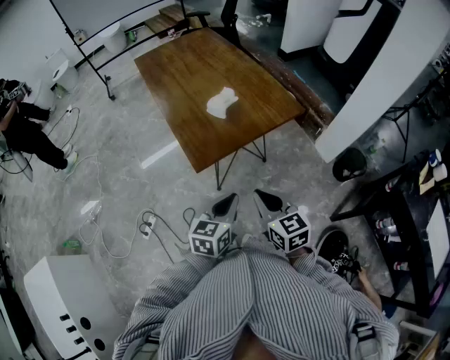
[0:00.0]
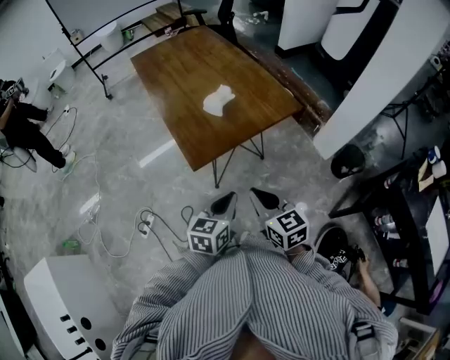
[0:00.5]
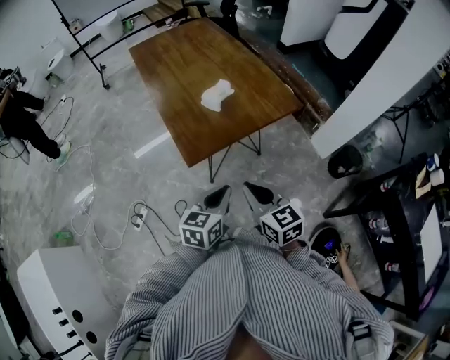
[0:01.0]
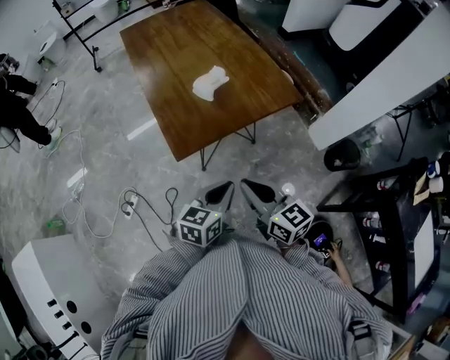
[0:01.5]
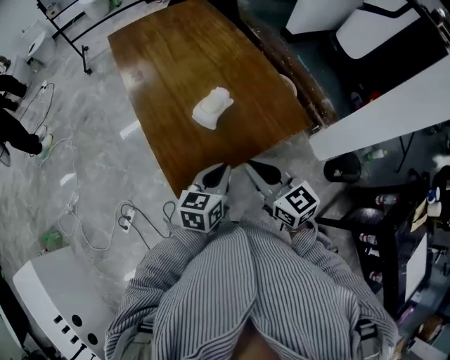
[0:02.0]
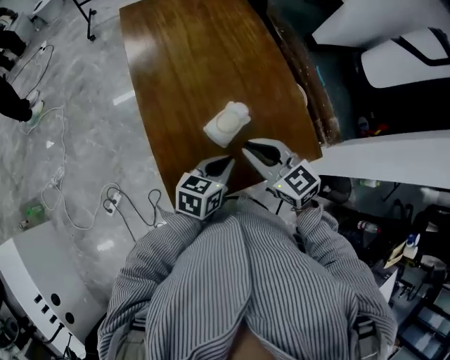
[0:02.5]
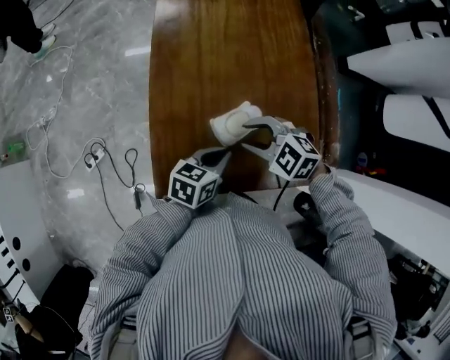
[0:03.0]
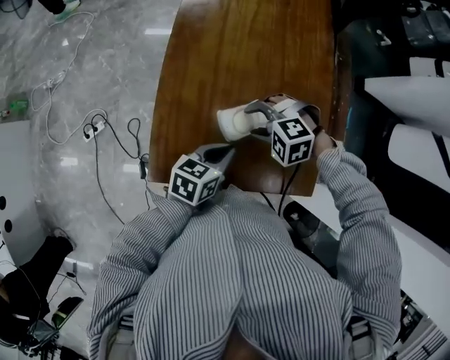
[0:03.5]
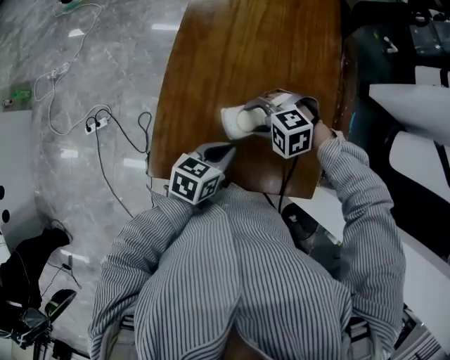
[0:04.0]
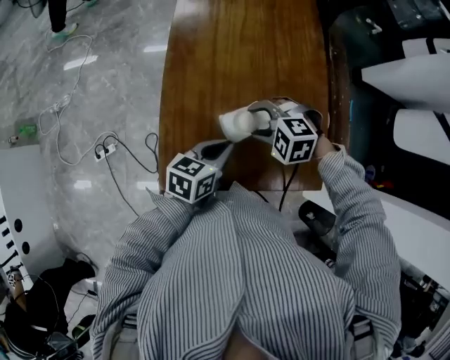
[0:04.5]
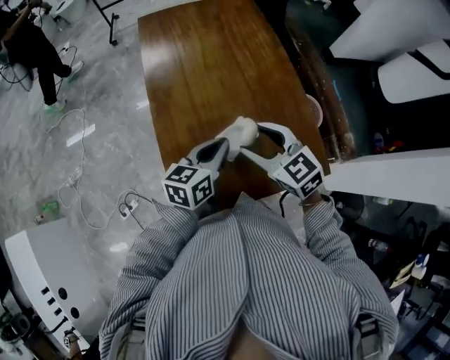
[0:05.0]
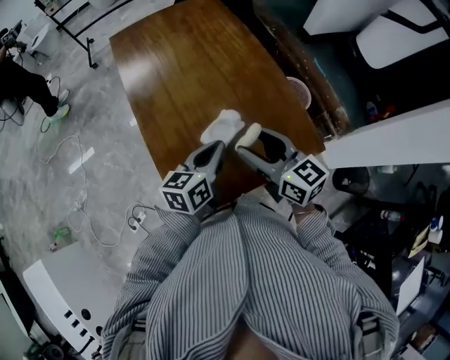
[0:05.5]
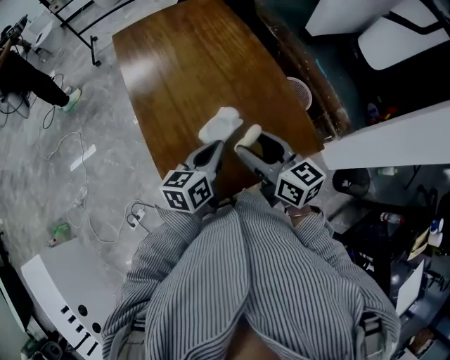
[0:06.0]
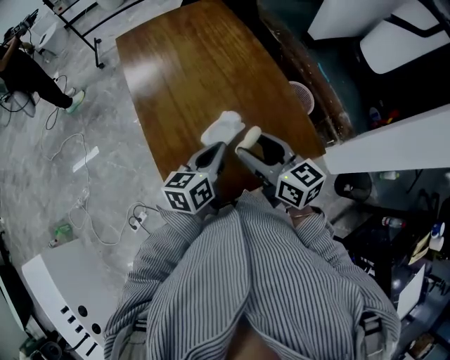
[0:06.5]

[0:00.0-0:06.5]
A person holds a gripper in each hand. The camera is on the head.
0:00.0 to 0:02.0: The two grippers go about 25 cm forward.
0:02.0 to 0:04.5: The right gripper changes place by about 25 cm, angles its fingers downward, by roughly 50 degrees, and opens. Meanwhile the left gripper ends up some 15 cm from where it was, and rotates roughly 20 degrees.
0:04.5 to 0:06.5: The left gripper heads upward, covering approximately 10 cm. The right gripper travels upward by roughly 15 cm, and tilts its fingers some 60 degrees upward.

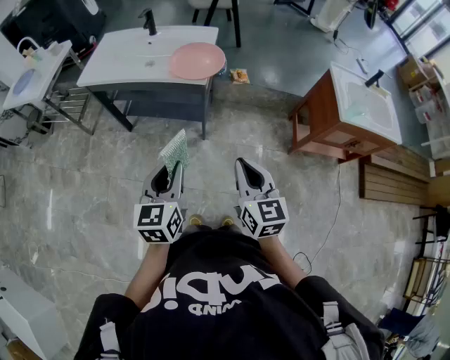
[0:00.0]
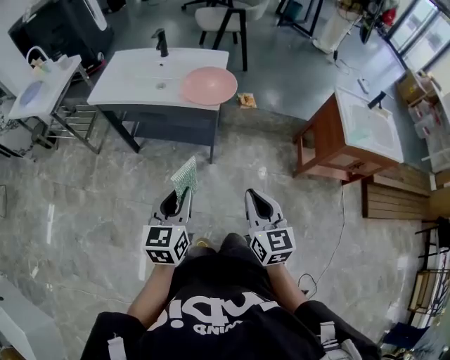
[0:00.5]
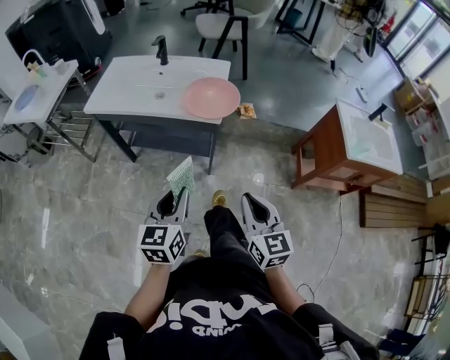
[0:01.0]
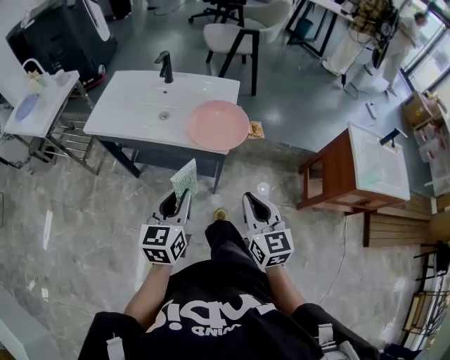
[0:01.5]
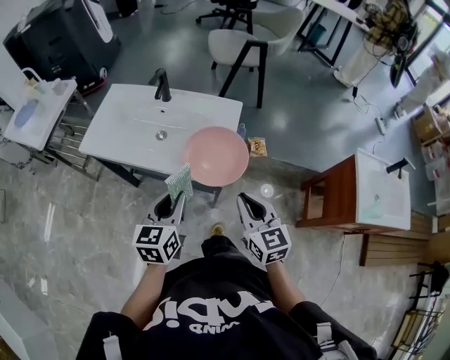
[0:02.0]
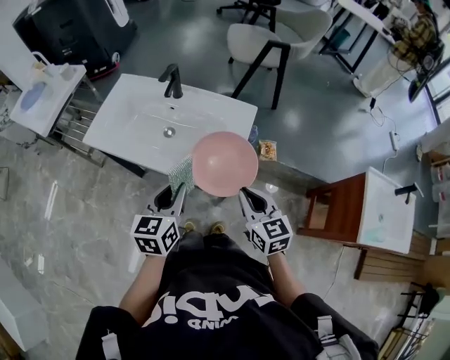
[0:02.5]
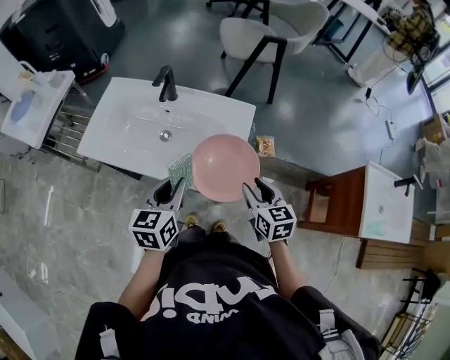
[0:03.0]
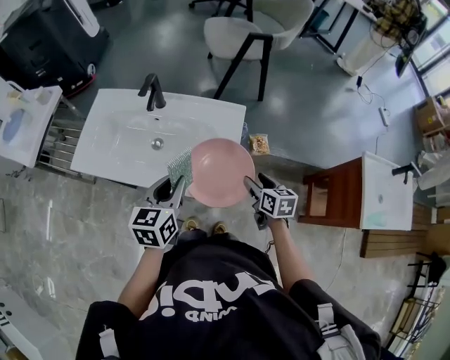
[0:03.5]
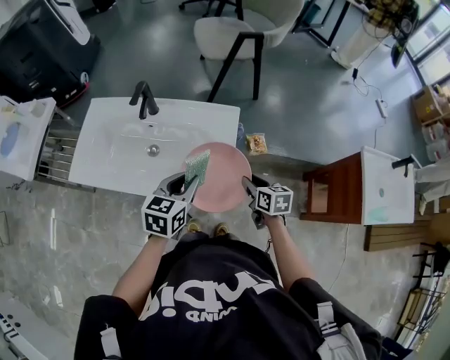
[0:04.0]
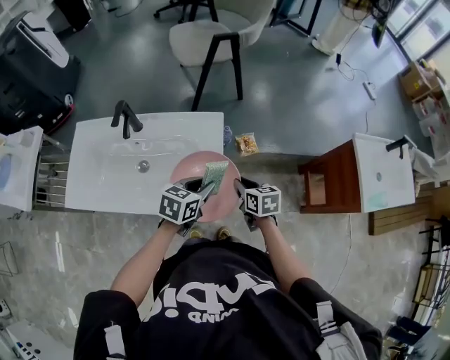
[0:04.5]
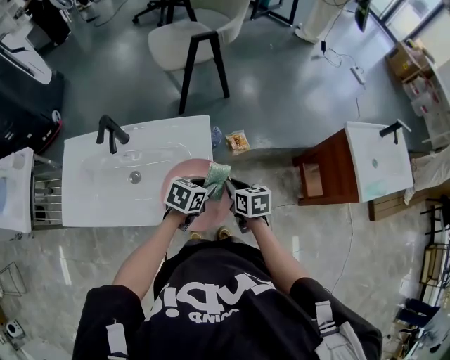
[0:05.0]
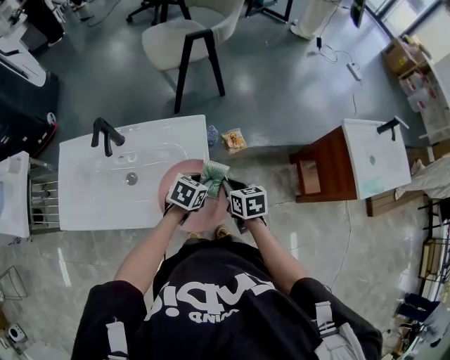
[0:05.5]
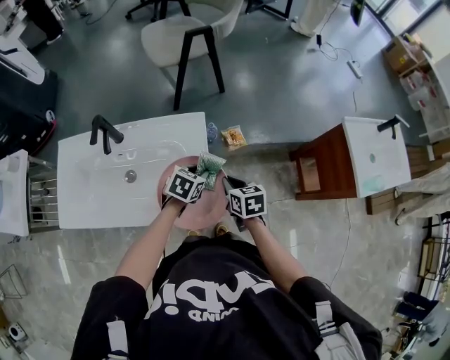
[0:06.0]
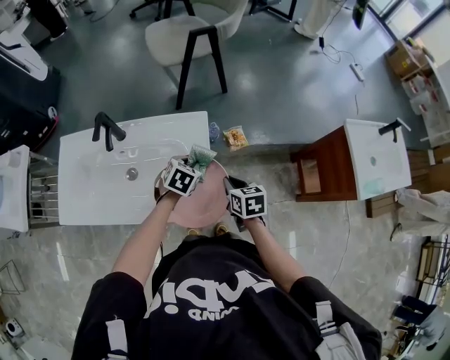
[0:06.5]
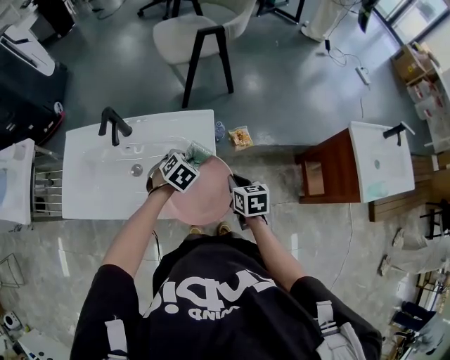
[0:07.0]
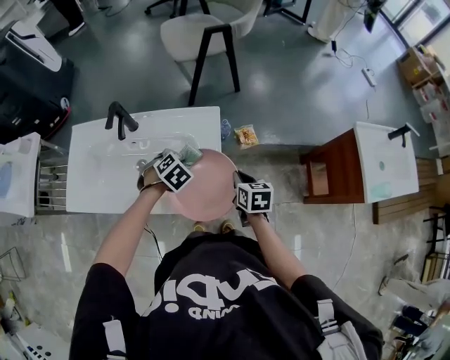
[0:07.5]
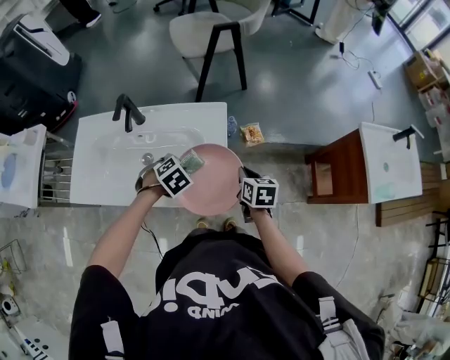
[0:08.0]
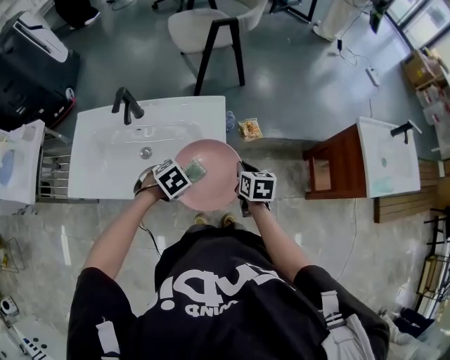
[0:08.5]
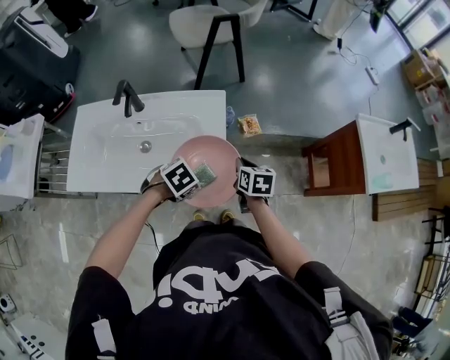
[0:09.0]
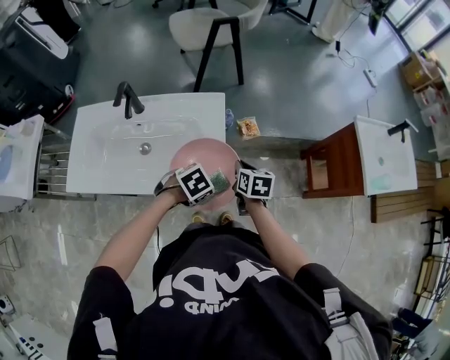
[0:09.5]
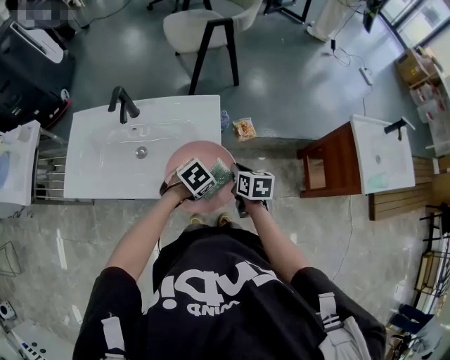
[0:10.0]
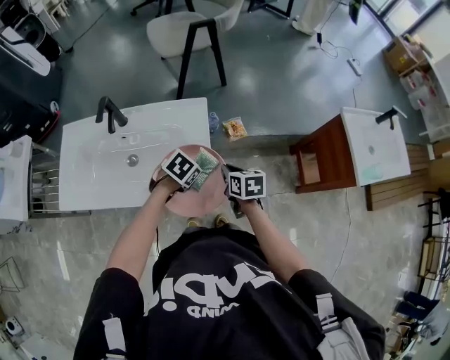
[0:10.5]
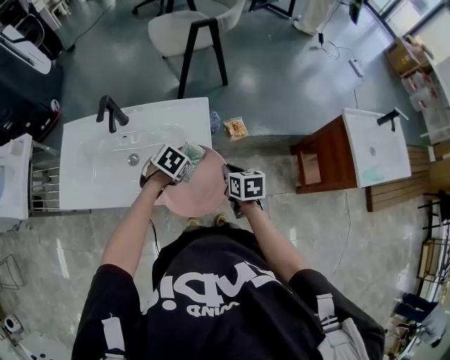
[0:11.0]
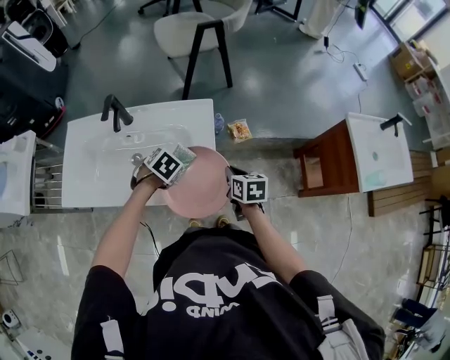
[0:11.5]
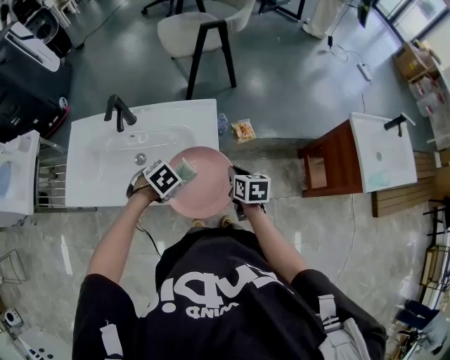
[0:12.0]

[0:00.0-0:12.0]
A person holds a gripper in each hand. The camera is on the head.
0:00.0 to 0:02.0: Both grippers move forward, about 30 cm.
0:02.0 to 0:04.0: The left gripper shifts roughly 15 cm forward, and rotates approximately 20 degrees; the right gripper shifts approximately 25 cm forward and downward, turns by roughly 40 degrees, and opens up.
0:04.0 to 0:06.0: The right gripper closes up; the left gripper heads downward, forward and to the right, covering approximately 20 cm, and changes its angle by some 30 degrees.
0:06.0 to 0:08.0: The left gripper travels to the left by some 15 cm, and rotates some 30 degrees.
0:08.0 to 0:10.0: The left gripper ends up some 15 cm from where it was, and turns by some 20 degrees.
0:10.0 to 0:12.0: The left gripper moves approximately 10 cm.

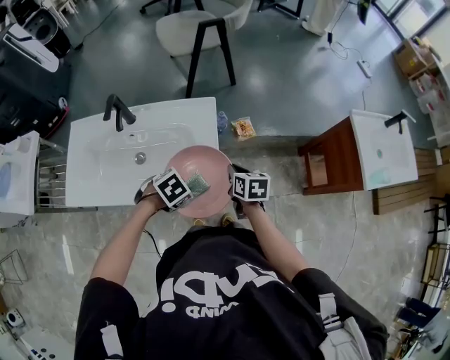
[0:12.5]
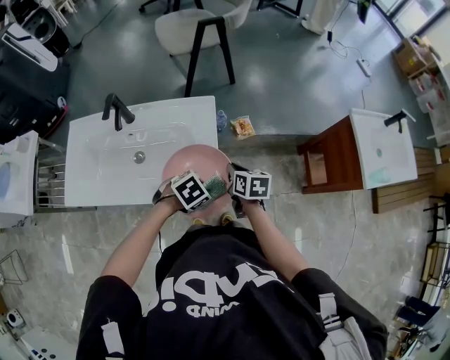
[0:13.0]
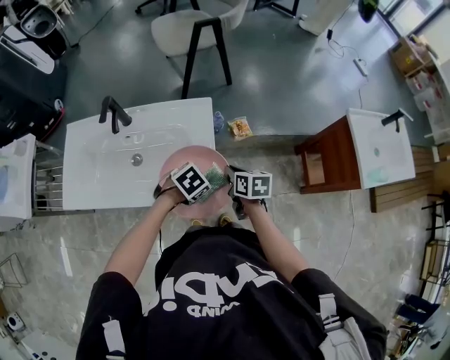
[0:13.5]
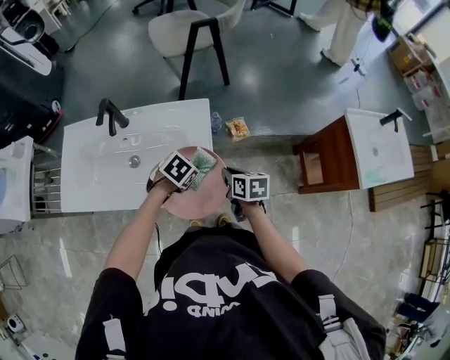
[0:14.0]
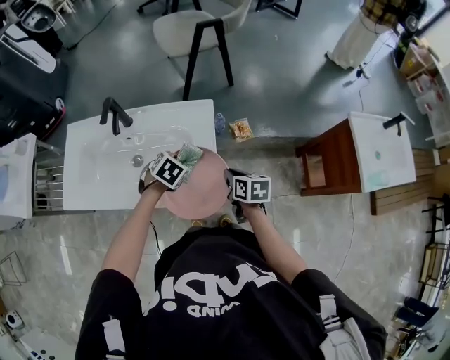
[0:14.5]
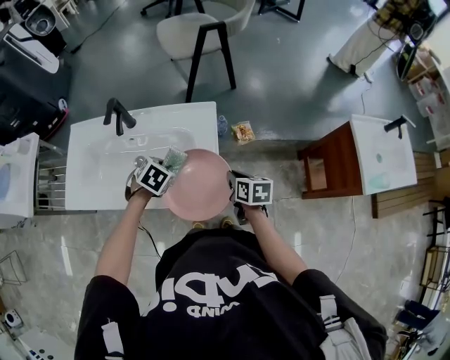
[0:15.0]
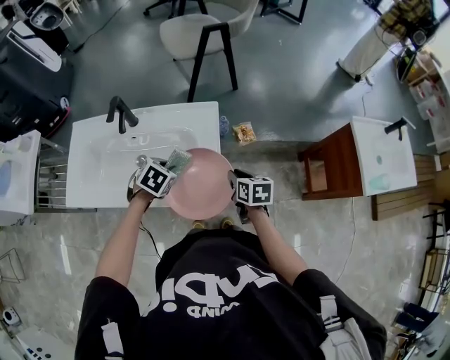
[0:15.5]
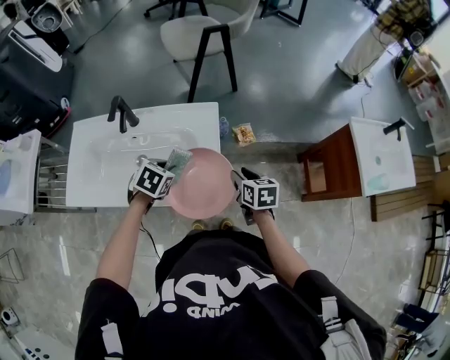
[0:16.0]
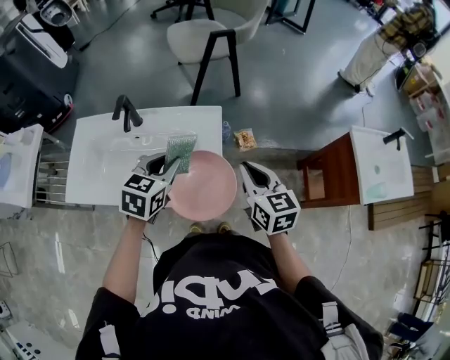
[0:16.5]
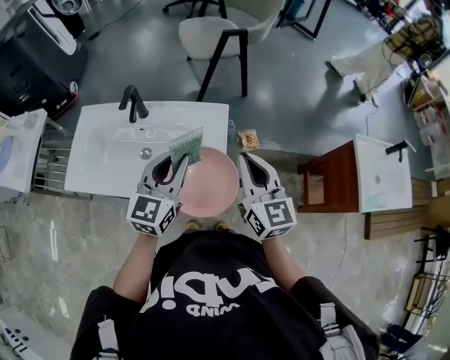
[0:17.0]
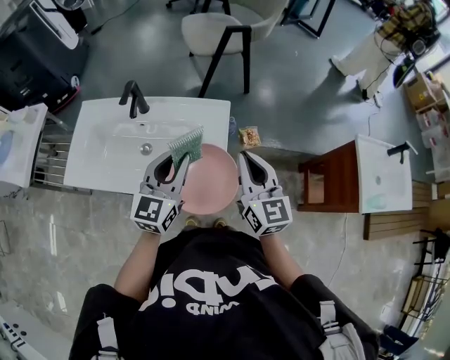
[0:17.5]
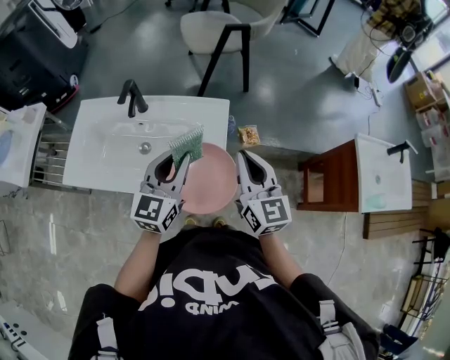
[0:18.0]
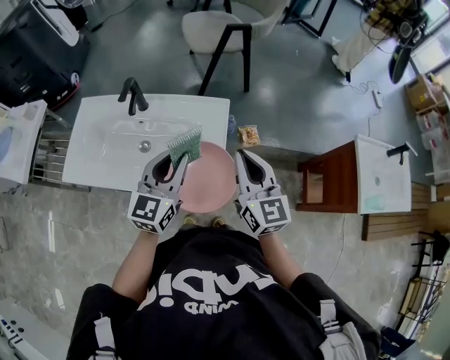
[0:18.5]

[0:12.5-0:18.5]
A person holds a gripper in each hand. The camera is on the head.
0:12.5 to 0:14.5: The left gripper moves some 10 cm, and turns by about 20 degrees.
0:14.5 to 0:16.5: The grippers both shift upward by about 20 cm. The left gripper angles its fingers upward, by roughly 30 degrees. The right gripper changes its angle by some 30 degrees, and opens and closes again.
0:16.5 to 0:18.5: The left gripper turns by some 30 degrees. Meanwhile the right gripper changes place by approximately 5 cm, and changes its angle by approximately 20 degrees.

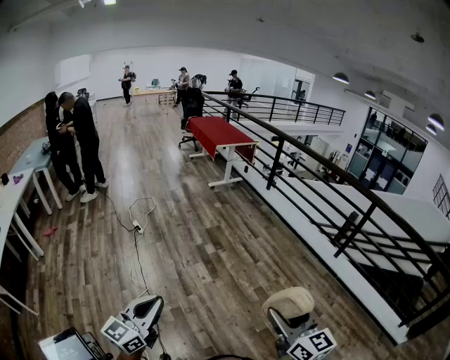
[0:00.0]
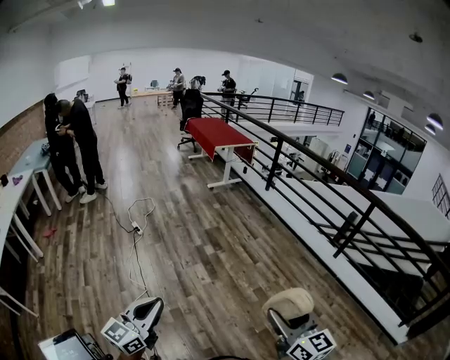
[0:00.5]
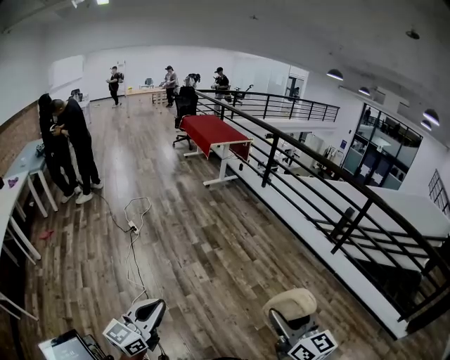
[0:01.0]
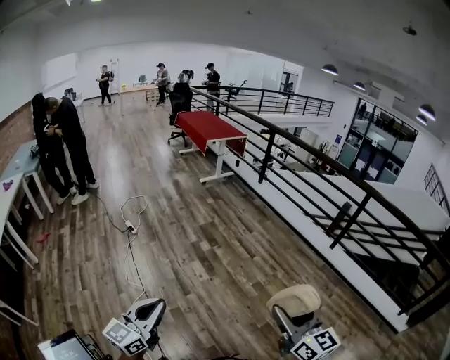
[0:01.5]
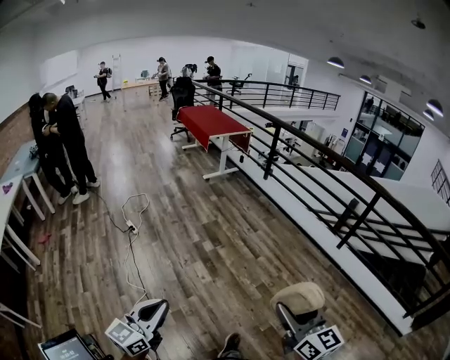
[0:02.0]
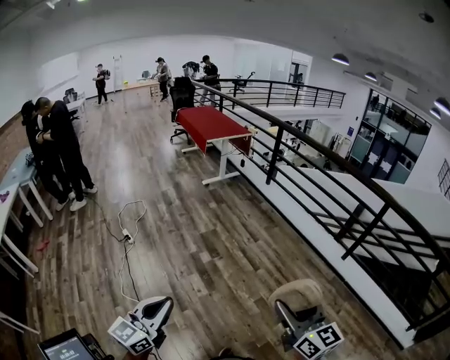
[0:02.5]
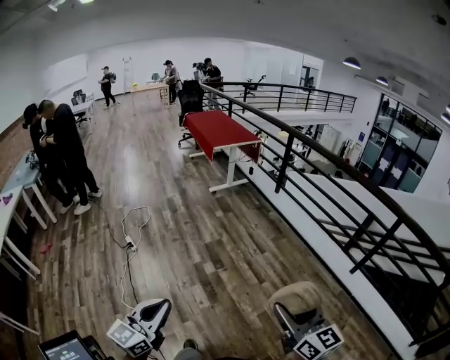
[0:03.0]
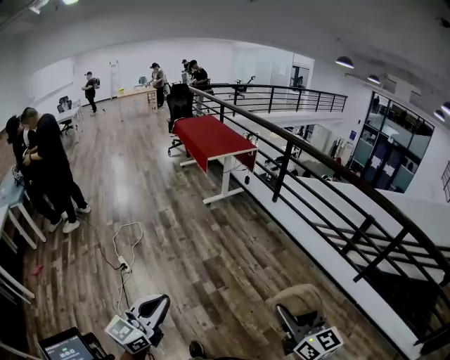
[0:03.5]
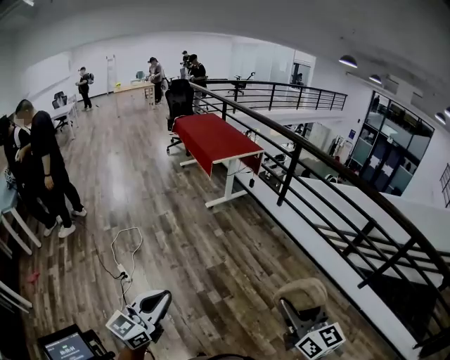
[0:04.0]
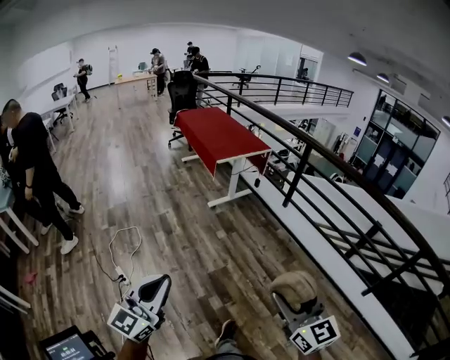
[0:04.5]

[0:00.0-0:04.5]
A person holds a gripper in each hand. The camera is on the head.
0:00.0 to 0:02.0: Both grippers move forward, about 10 cm.
0:02.0 to 0:04.5: Both grippers are carried forward, approximately 90 cm.
